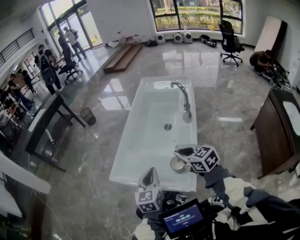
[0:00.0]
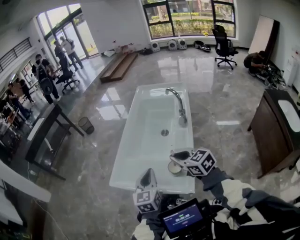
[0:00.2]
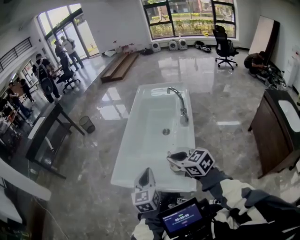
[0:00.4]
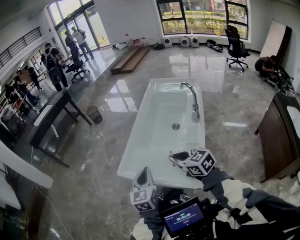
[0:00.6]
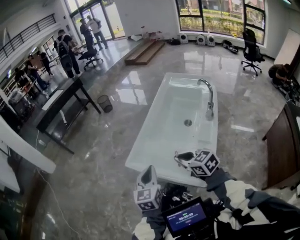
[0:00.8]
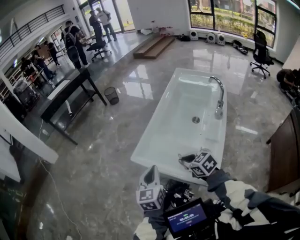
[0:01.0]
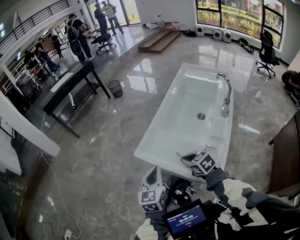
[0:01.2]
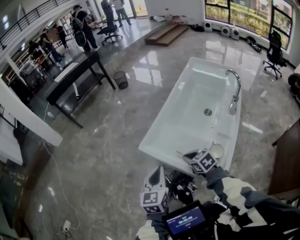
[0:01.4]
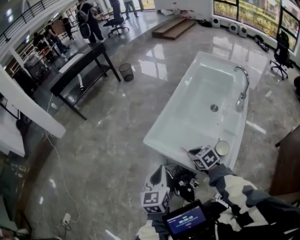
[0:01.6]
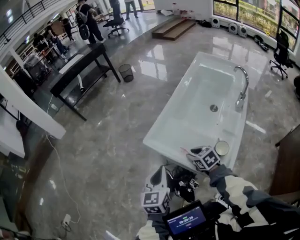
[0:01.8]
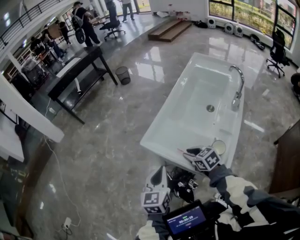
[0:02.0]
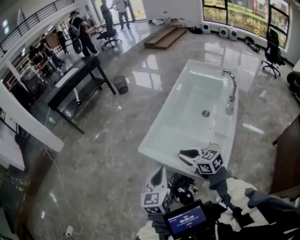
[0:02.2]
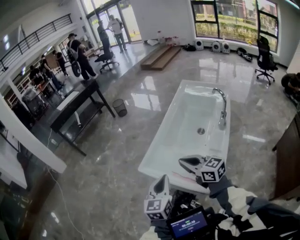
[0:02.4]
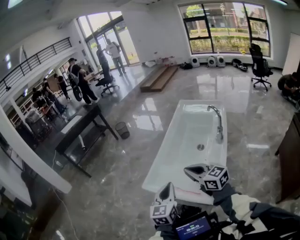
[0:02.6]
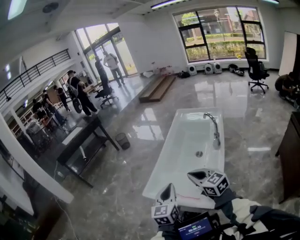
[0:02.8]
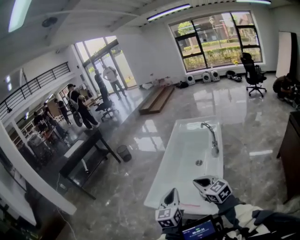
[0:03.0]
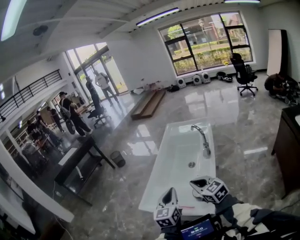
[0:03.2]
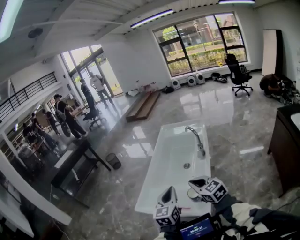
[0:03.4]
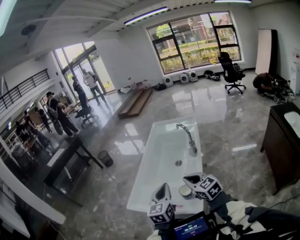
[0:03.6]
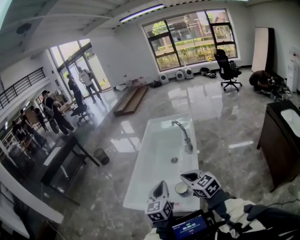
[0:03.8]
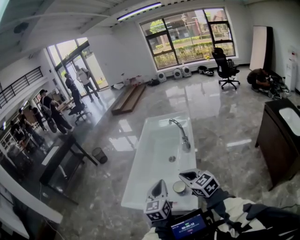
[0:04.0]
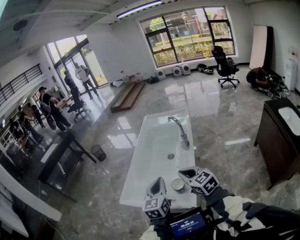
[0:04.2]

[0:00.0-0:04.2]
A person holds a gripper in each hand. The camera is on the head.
0:00.0 to 0:01.4: The left gripper moves to the left, approximately 15 cm; the right gripper moves to the left and downward, approximately 20 cm, and swivels roughly 30 degrees.
0:01.4 to 0:02.8: The left gripper is displaced to the right and upward by roughly 15 cm. The right gripper goes approximately 20 cm upward, tilts its fingers about 30 degrees upward, and opens, then closes again.
0:02.8 to 0:04.2: The two grippers go roughly 10 cm to the right.

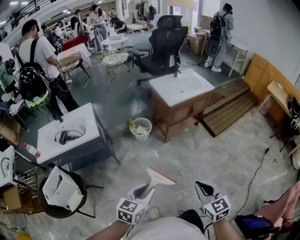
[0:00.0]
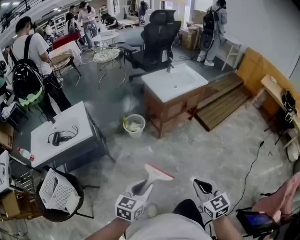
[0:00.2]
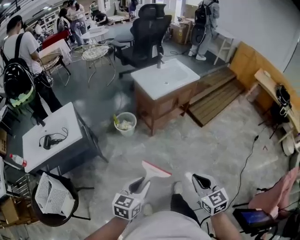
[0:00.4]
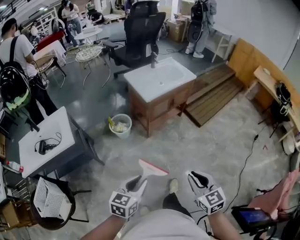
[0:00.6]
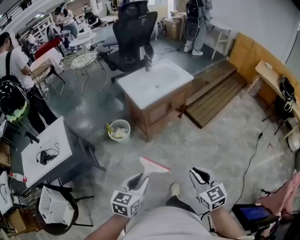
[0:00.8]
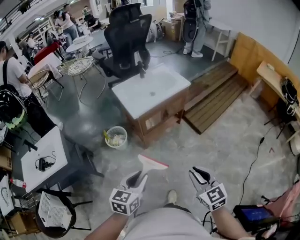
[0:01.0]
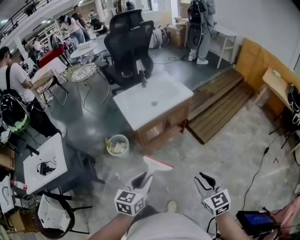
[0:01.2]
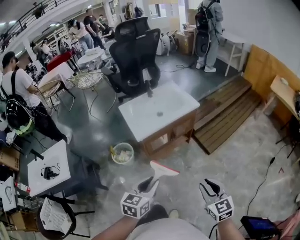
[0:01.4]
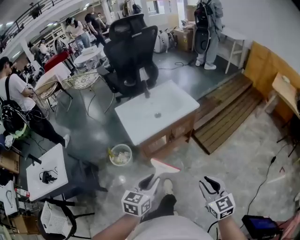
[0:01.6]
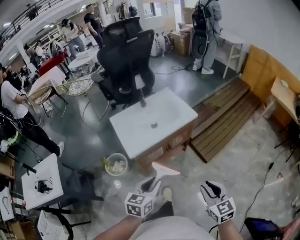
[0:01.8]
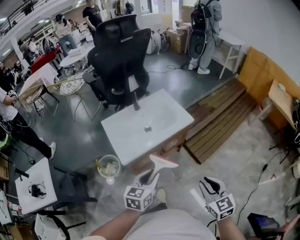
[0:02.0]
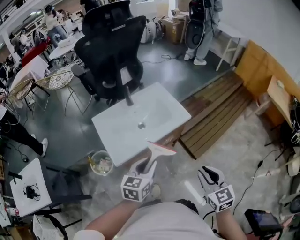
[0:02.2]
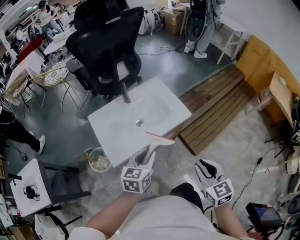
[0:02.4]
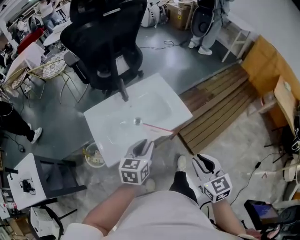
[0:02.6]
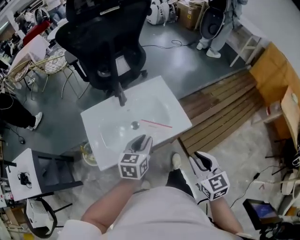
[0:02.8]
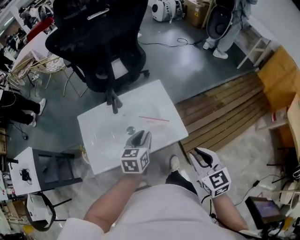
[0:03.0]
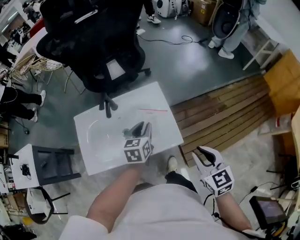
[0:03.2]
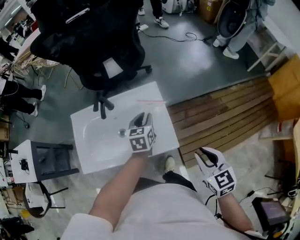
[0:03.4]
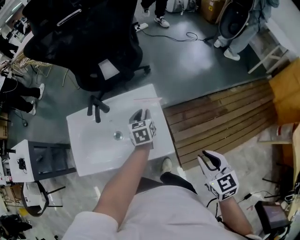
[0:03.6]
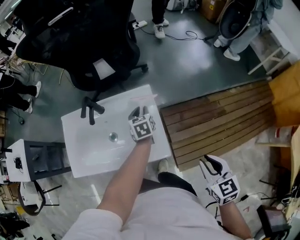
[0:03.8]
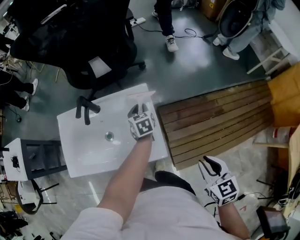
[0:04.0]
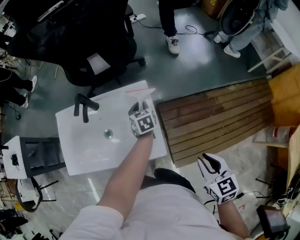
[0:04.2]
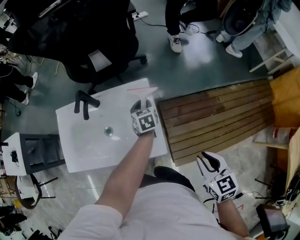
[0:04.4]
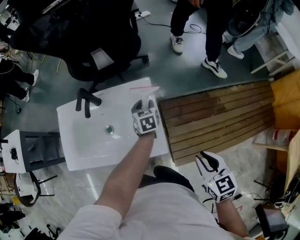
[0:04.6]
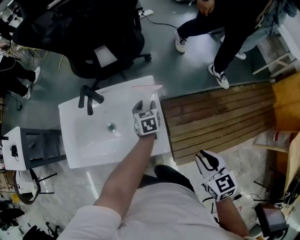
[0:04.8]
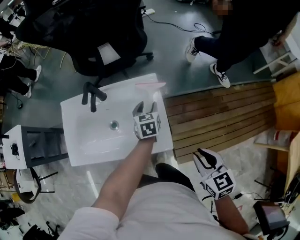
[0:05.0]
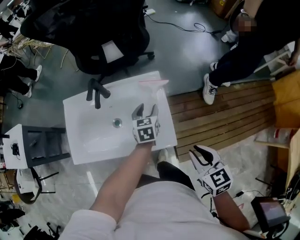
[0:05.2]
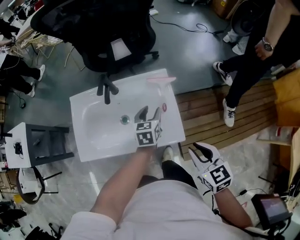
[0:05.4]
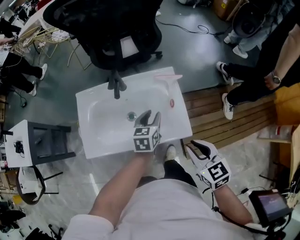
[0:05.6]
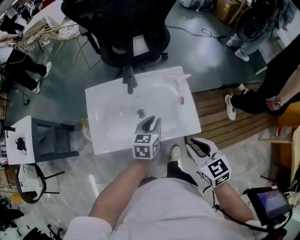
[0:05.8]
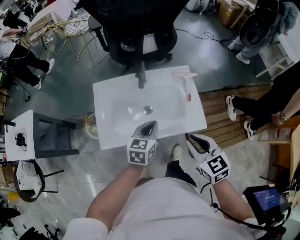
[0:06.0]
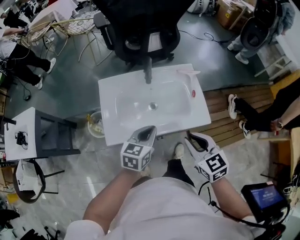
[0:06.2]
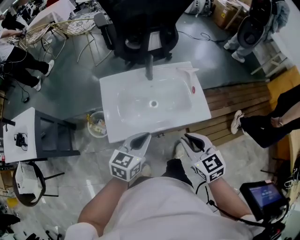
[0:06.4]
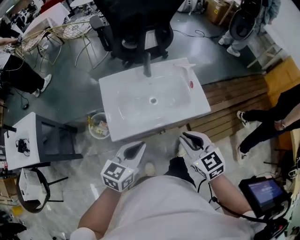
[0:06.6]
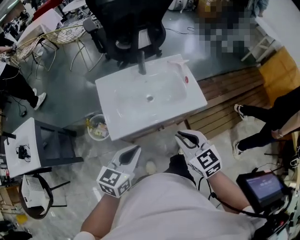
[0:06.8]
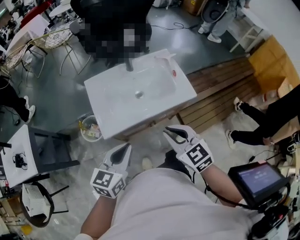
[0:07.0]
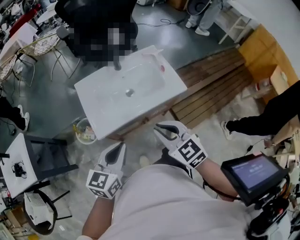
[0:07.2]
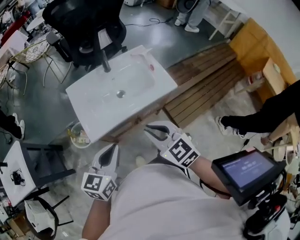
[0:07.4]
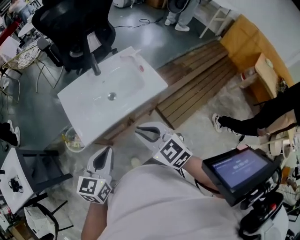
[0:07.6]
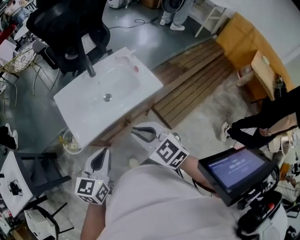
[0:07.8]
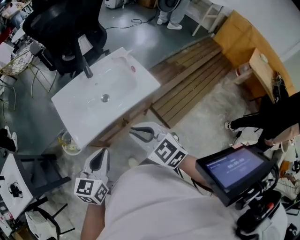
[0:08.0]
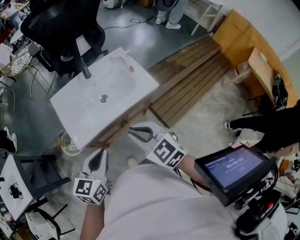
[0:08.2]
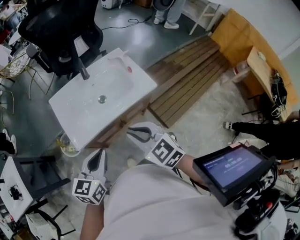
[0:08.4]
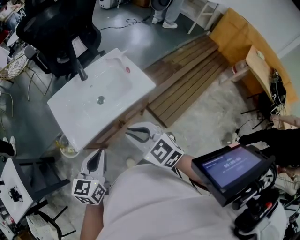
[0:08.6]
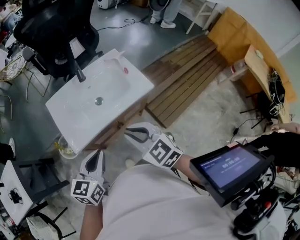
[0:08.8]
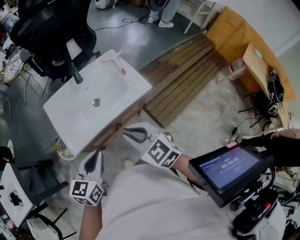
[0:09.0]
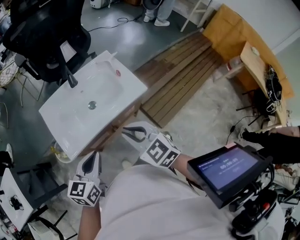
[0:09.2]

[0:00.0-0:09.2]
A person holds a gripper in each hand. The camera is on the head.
0:00.0 to 0:01.6: The pair of grippers is taken forward and to the right, roughly 50 cm.
0:01.6 to 0:03.0: Both grippers are carried forward, about 50 cm. The left gripper turns by some 20 degrees.
0:03.0 to 0:04.6: The right gripper travels to the right and forward by approximately 20 cm; the left gripper travels forward, to the right and downward by approximately 30 cm, and turns by some 30 degrees.
0:04.6 to 0:06.2: The right gripper goes about 35 cm to the left; the left gripper is displaced to the left, backward and upward by approximately 40 cm, swivels roughly 30 degrees, and closes up.
0:06.2 to 0:07.6: The left gripper travels backward, upward and to the left by about 20 cm. The right gripper shifts some 15 cm backward and to the left.
0:07.6 to 0:09.2: The grippers stay close to where they were, moving slightly.

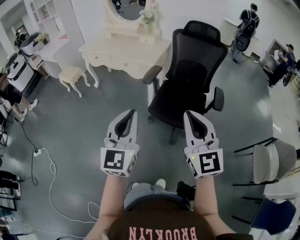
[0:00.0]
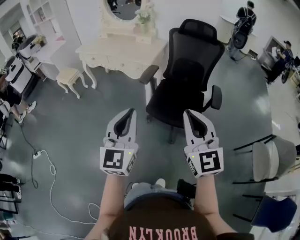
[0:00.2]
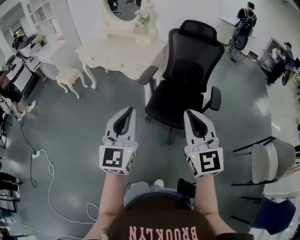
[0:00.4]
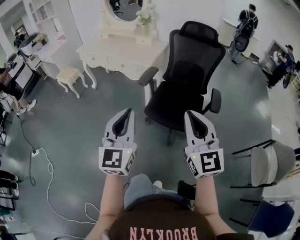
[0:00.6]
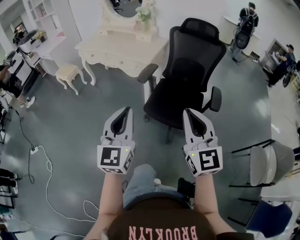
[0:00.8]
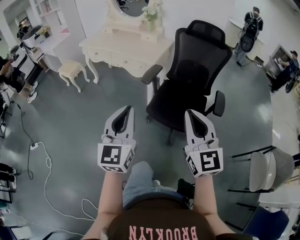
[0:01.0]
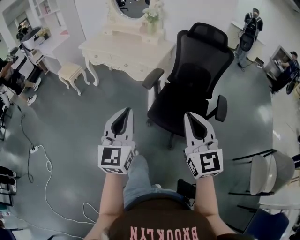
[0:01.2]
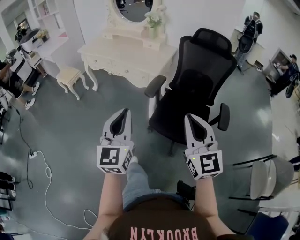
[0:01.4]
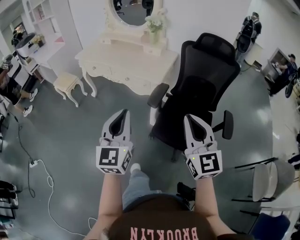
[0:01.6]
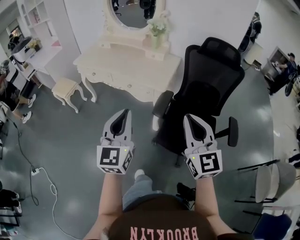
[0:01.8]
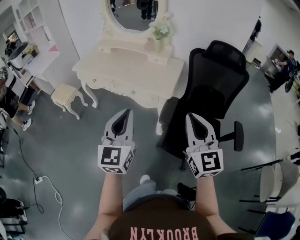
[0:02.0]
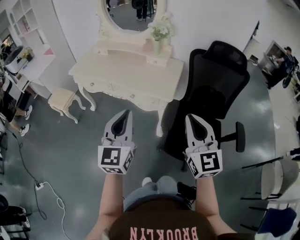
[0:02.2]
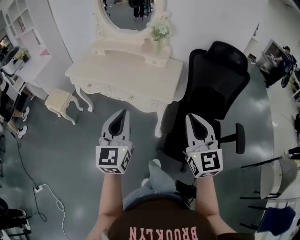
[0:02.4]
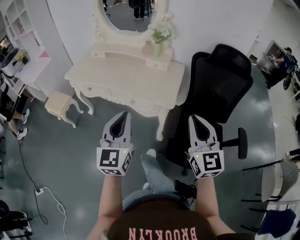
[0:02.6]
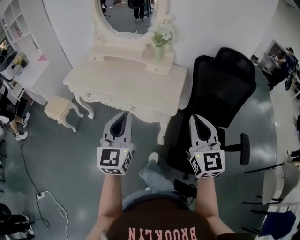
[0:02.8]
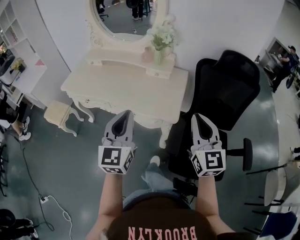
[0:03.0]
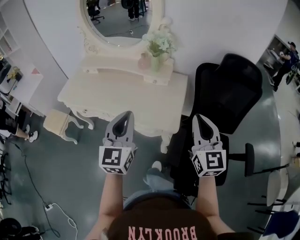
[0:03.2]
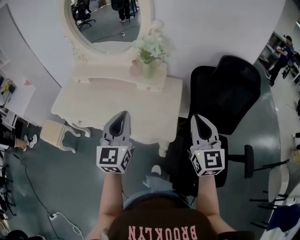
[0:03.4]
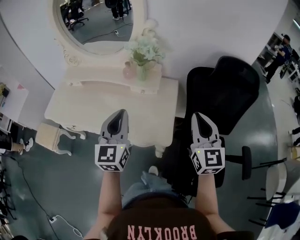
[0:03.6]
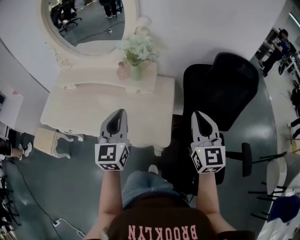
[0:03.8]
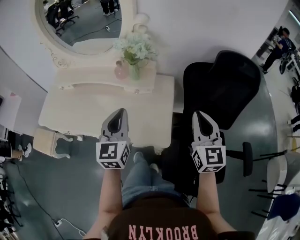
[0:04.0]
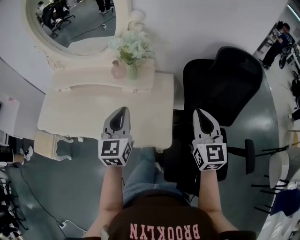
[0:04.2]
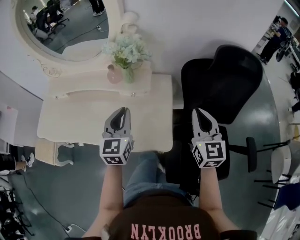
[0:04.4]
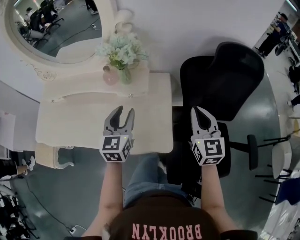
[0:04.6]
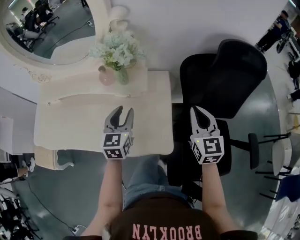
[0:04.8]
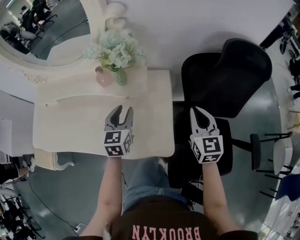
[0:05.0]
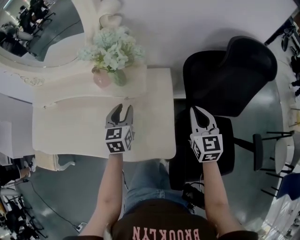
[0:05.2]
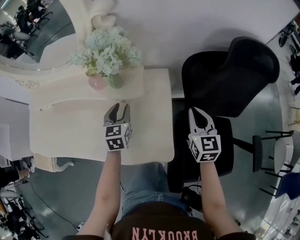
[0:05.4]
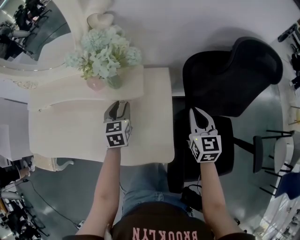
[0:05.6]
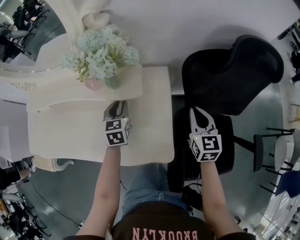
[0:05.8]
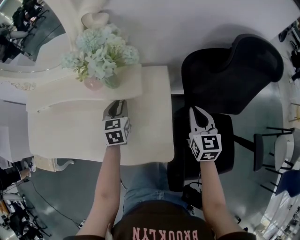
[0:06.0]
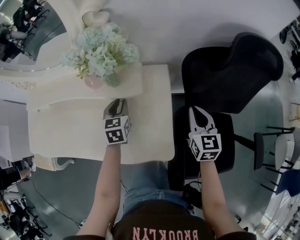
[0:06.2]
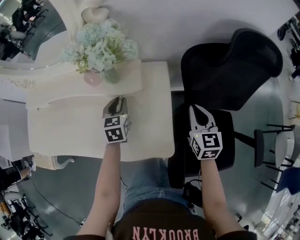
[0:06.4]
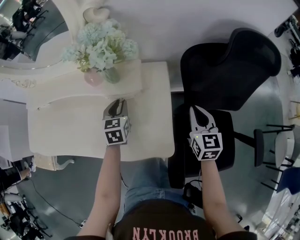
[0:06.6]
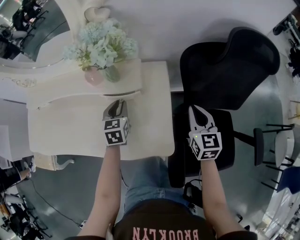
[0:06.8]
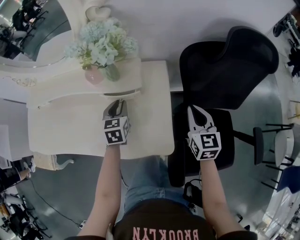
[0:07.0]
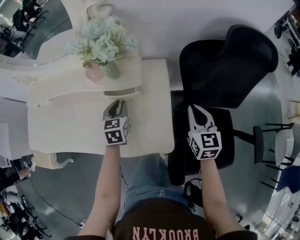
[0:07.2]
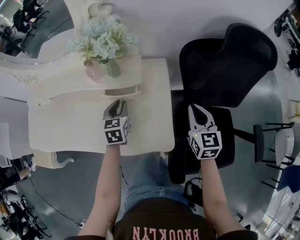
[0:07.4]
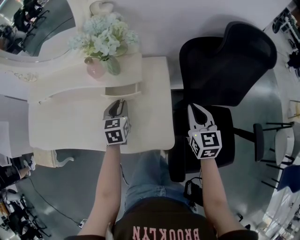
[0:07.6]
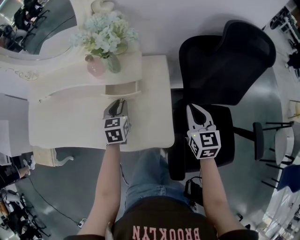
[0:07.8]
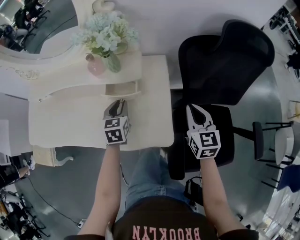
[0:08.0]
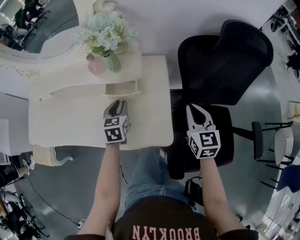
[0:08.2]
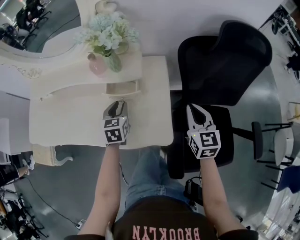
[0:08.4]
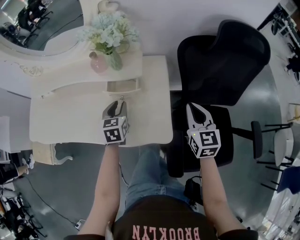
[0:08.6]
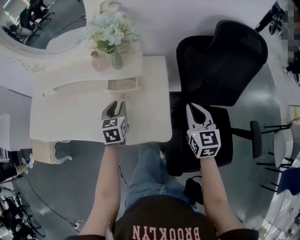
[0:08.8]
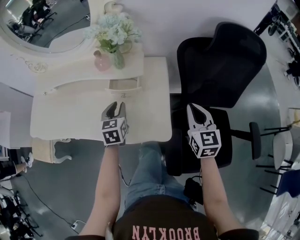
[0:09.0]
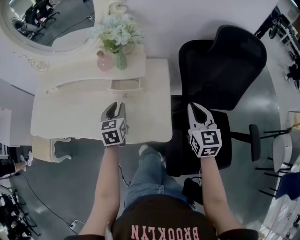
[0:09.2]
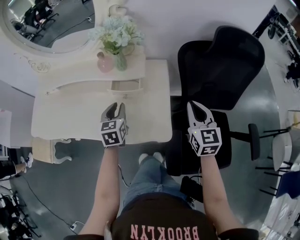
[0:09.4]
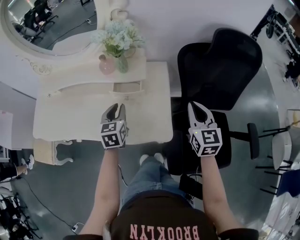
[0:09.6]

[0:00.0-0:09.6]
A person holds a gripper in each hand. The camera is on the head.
0:00.0 to 0:01.6: Both grippers travel together forward, about 20 cm.
0:01.6 to 0:03.2: Both grippers are carried forward, approximately 40 cm.
0:03.2 to 0:04.8: The two grippers go some 30 cm forward and downward. The left gripper swivels roughly 30 degrees, and opens its fingers, while the right gripper rotates some 20 degrees.
0:04.8 to 0:06.4: The right gripper shifts about 10 cm downward, while the left gripper is displaced downward and forward by some 15 cm.
0:06.4 to 0:08.0: The grippers both shift backward by approximately 5 cm.
0:08.0 to 0:09.6: The grippers both shift upward by some 5 cm.
